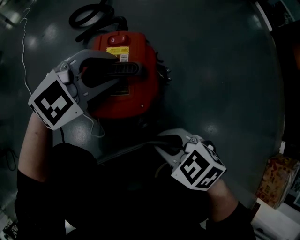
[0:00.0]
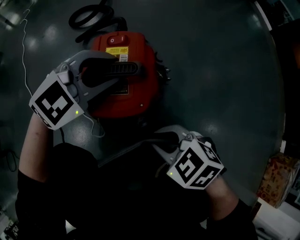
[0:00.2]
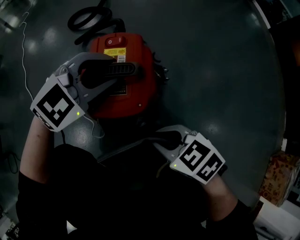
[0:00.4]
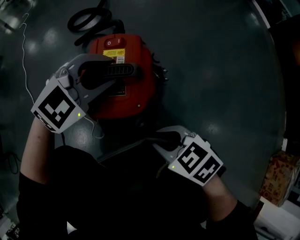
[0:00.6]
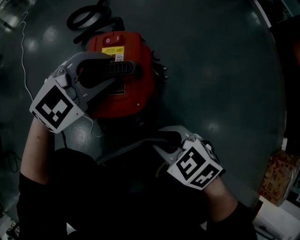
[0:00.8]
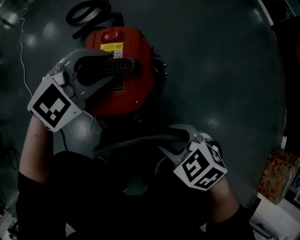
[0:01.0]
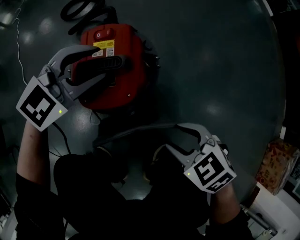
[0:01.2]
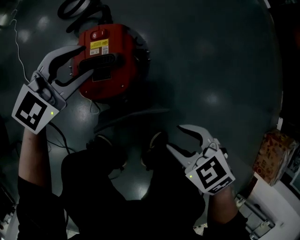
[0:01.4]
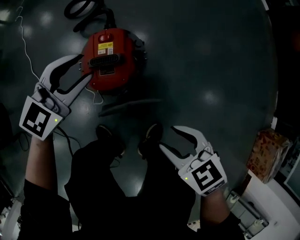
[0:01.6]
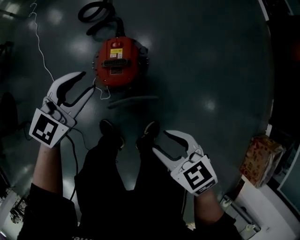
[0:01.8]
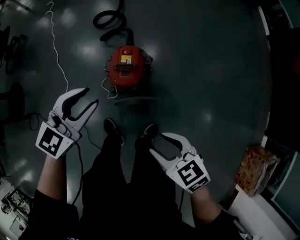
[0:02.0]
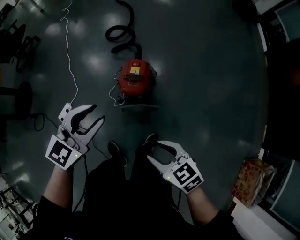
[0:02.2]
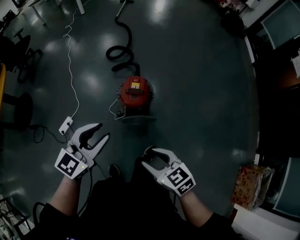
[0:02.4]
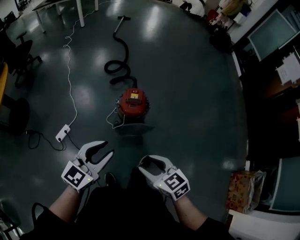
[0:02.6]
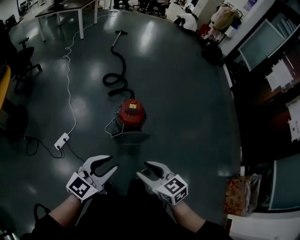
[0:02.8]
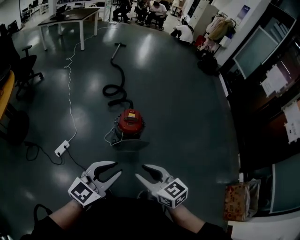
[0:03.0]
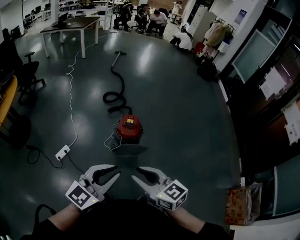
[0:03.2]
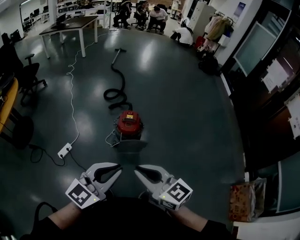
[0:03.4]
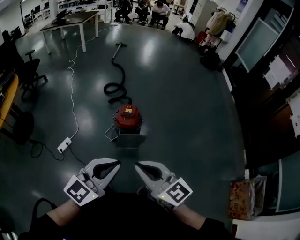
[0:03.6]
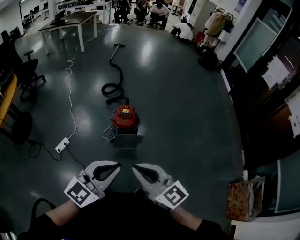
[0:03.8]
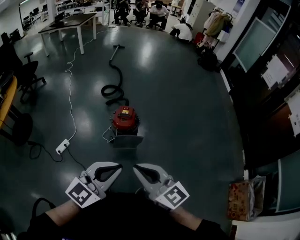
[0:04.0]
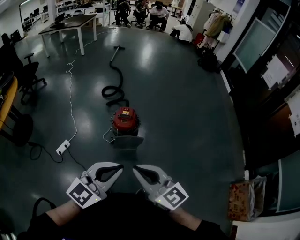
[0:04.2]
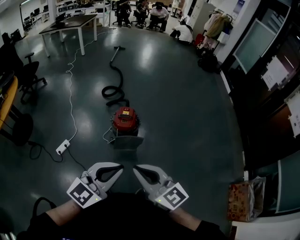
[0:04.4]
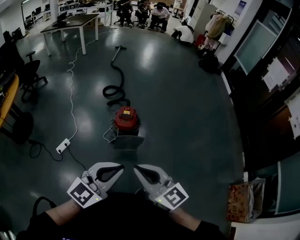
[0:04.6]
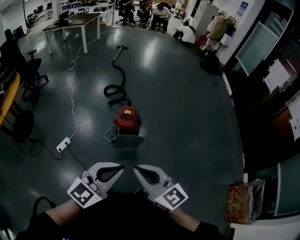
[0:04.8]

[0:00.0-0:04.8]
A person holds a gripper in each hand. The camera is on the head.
0:00.0 to 0:01.6: The grippers both shift upward by some 20 cm. The left gripper changes its angle by roughly 20 degrees, while the right gripper opens.
0:01.6 to 0:03.2: The left gripper travels backward and upward by some 60 cm, swivels some 30 degrees, and closes up. The right gripper goes about 50 cm upward and backward, and tips its fingers upward by about 40 degrees.
0:03.2 to 0:04.8: The two grippers go roughly 10 cm to the right. The right gripper closes up.

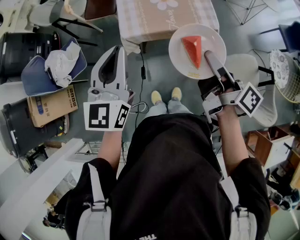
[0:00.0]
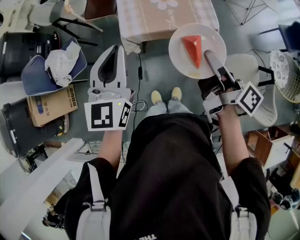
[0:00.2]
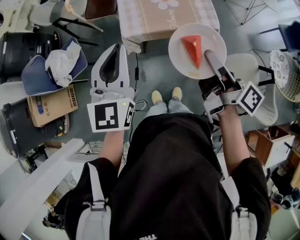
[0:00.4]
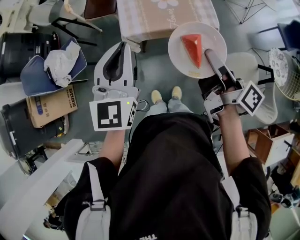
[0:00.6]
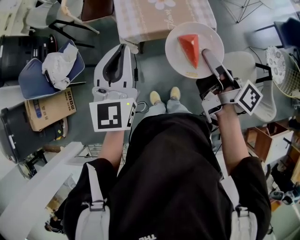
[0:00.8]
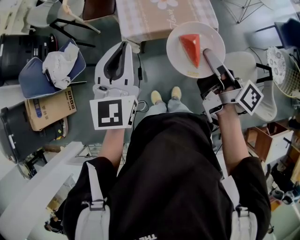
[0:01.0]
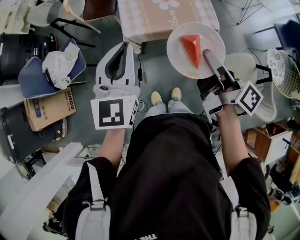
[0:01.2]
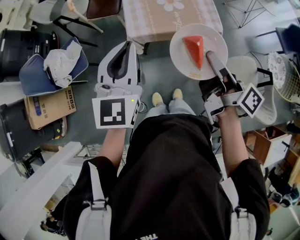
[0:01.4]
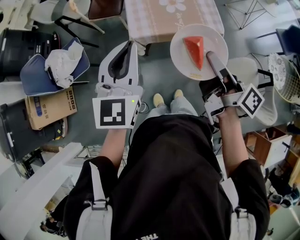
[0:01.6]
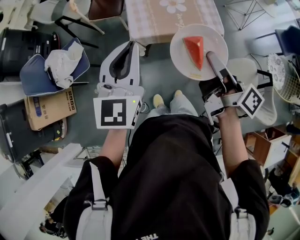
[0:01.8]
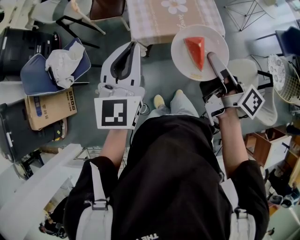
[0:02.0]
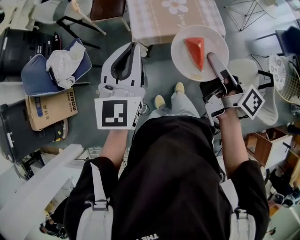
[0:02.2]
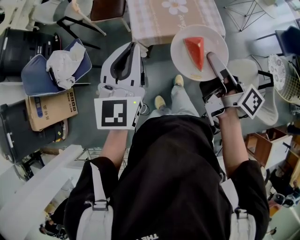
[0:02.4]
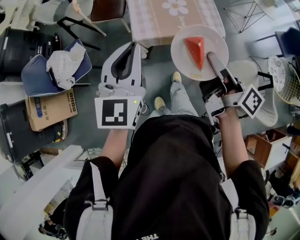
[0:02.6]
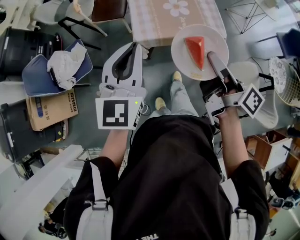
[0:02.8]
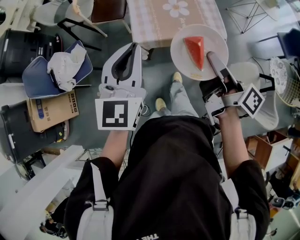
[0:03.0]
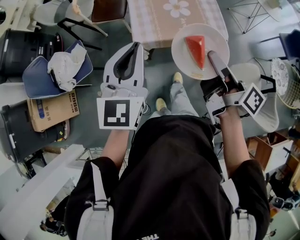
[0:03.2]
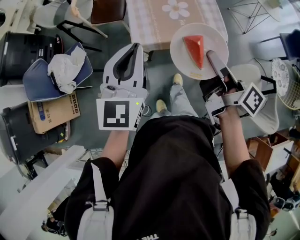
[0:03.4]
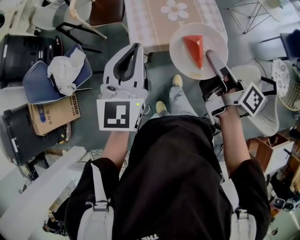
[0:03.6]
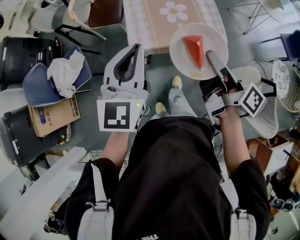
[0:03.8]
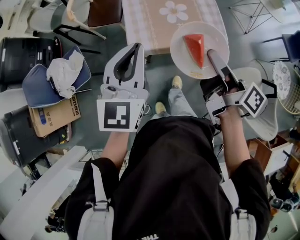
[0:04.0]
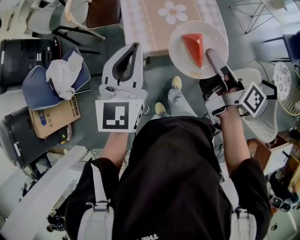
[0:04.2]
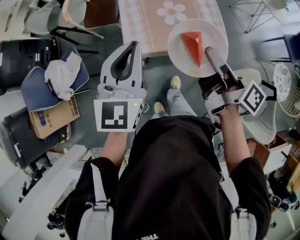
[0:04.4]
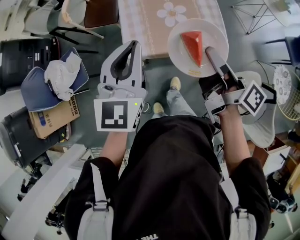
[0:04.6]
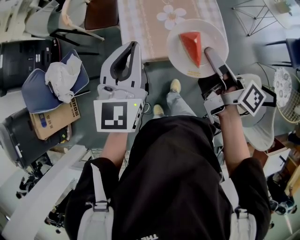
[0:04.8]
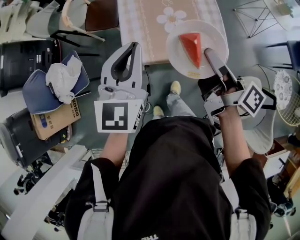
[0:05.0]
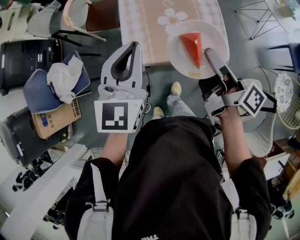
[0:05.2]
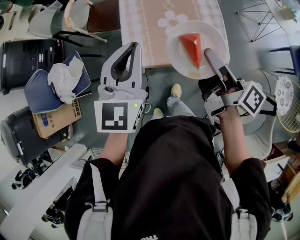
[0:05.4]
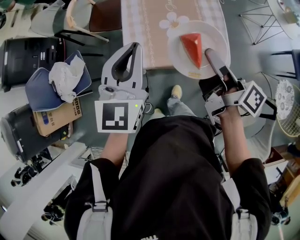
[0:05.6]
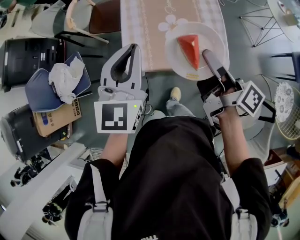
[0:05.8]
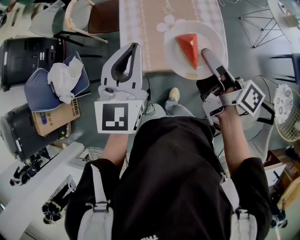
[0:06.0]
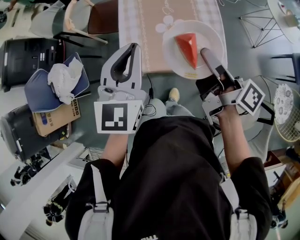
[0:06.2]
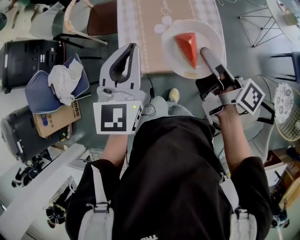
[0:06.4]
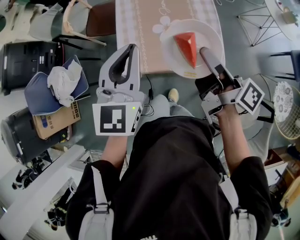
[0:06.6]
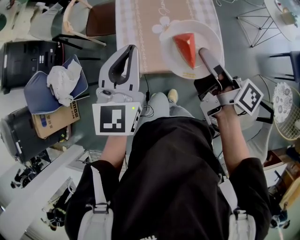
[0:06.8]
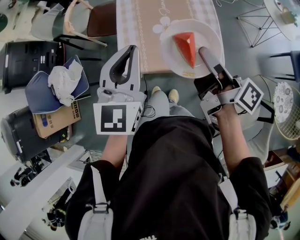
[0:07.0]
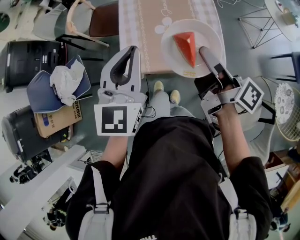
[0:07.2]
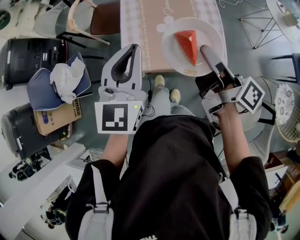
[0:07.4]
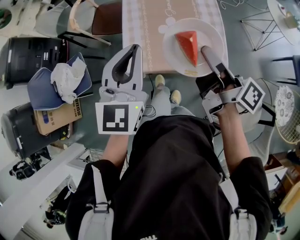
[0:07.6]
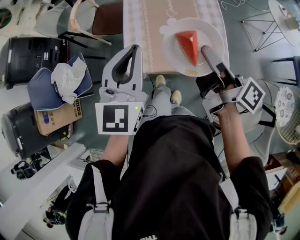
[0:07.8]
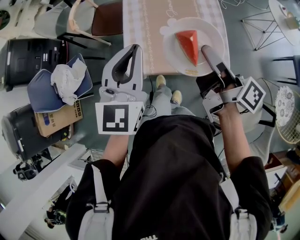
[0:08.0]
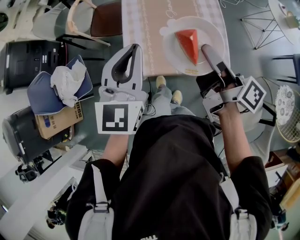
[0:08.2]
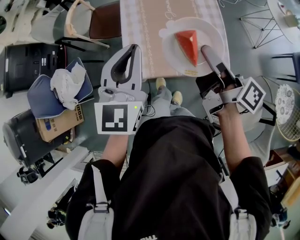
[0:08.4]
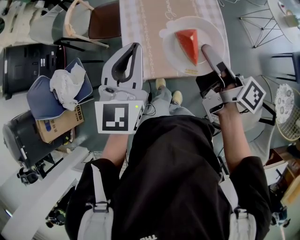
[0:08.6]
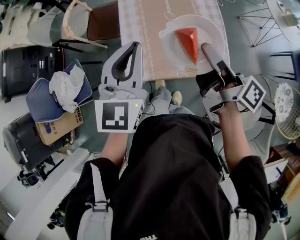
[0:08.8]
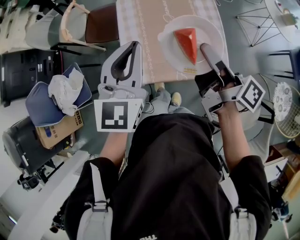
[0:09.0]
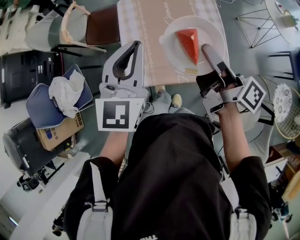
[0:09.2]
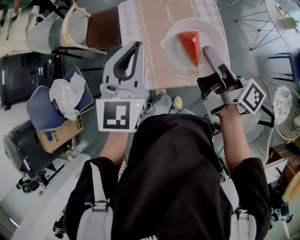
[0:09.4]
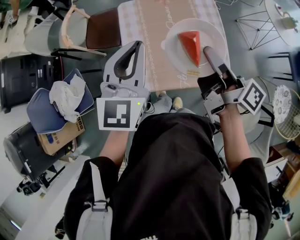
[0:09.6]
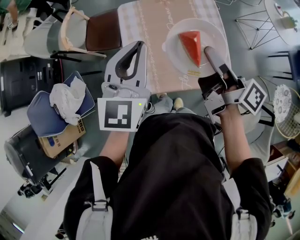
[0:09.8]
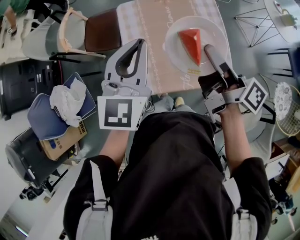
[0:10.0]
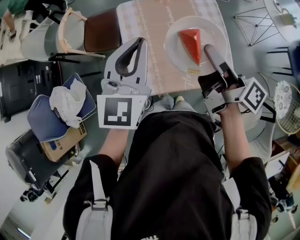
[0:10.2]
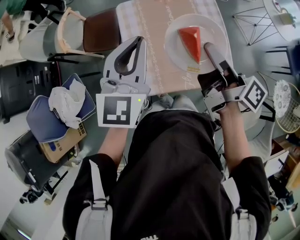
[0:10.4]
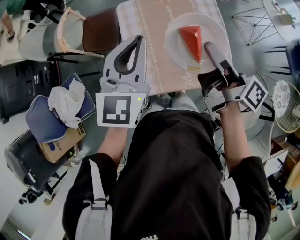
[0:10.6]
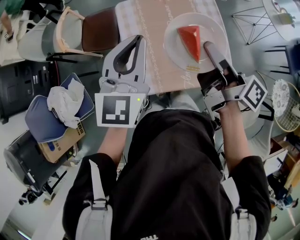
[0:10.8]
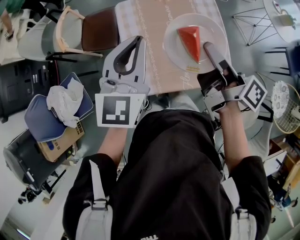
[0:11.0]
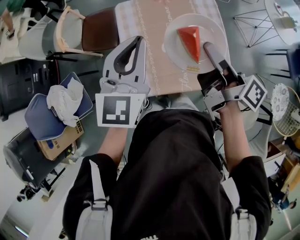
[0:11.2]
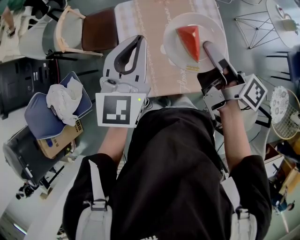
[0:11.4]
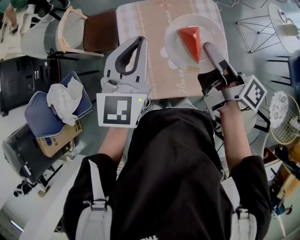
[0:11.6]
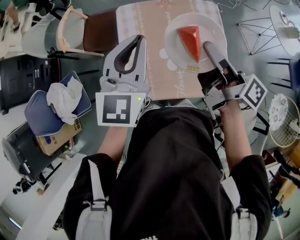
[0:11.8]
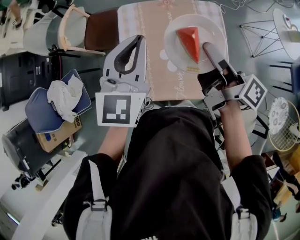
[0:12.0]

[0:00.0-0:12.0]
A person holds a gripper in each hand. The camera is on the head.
0:00.0 to 0:01.6: The right gripper travels to the left by about 5 cm.
0:01.6 to 0:03.0: The grippers make only small movements.
0:03.0 to 0:04.4: Both grippers travel together forward and to the right, about 15 cm.
0:04.4 to 0:06.0: Both grippers move forward and to the right, approximately 10 cm.
0:06.0 to 0:07.6: There are only small adjustments of the grippers.
0:07.6 to 0:09.0: Both grippers move forward, some 10 cm.
0:09.0 to 0:10.4: Both grippers travel together forward, approximately 5 cm.
0:10.4 to 0:12.0: The right gripper heads forward, covering about 5 cm. Meanwhile the left gripper shifts by approximately 5 cm.

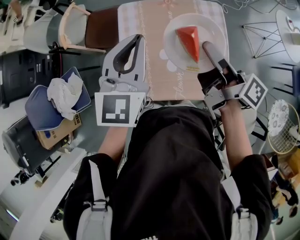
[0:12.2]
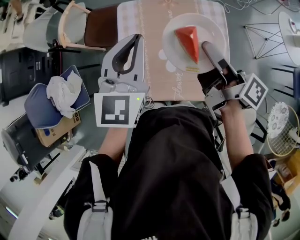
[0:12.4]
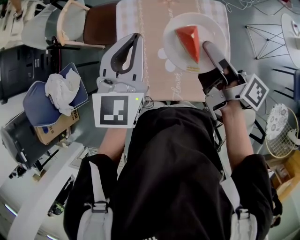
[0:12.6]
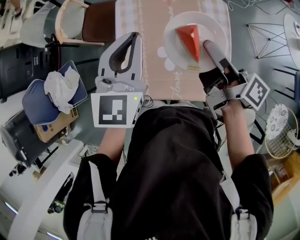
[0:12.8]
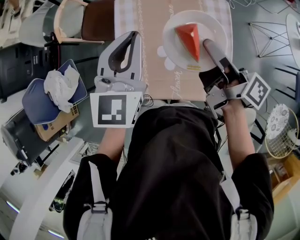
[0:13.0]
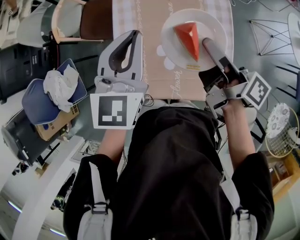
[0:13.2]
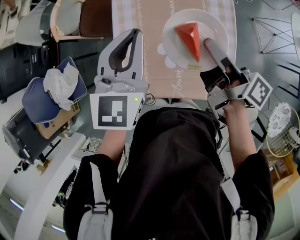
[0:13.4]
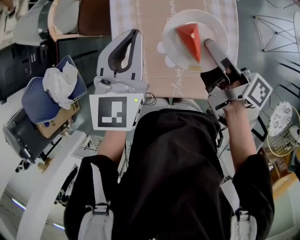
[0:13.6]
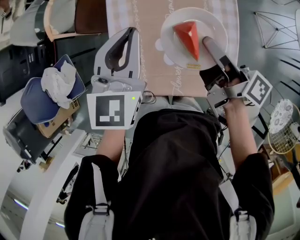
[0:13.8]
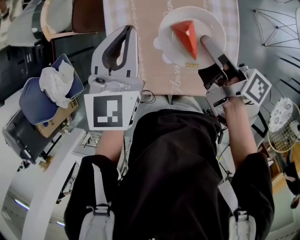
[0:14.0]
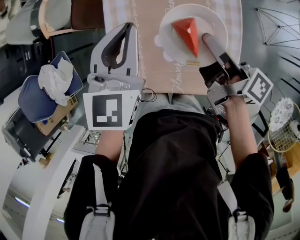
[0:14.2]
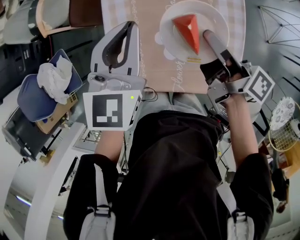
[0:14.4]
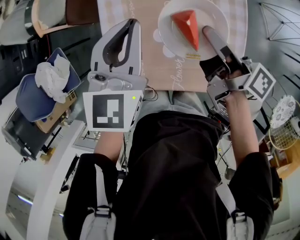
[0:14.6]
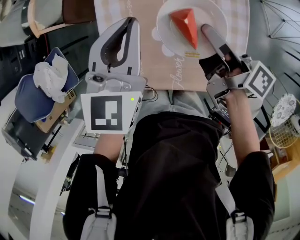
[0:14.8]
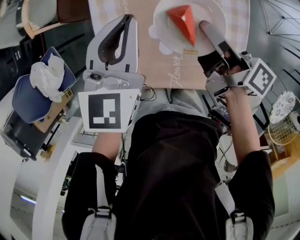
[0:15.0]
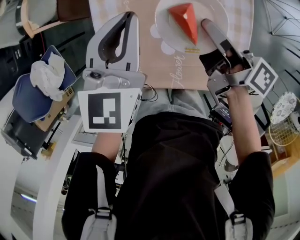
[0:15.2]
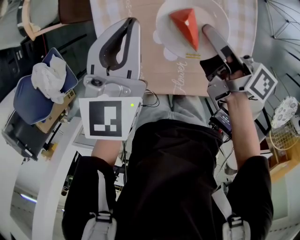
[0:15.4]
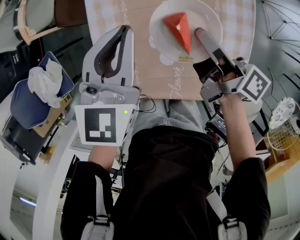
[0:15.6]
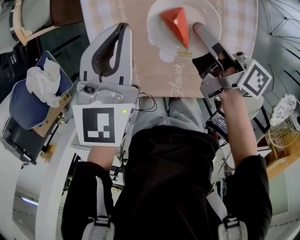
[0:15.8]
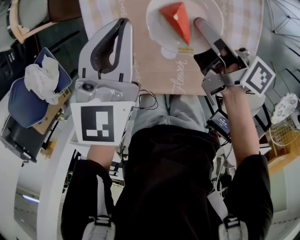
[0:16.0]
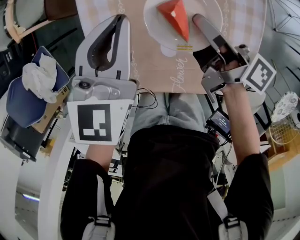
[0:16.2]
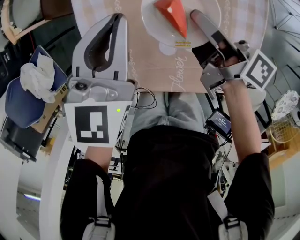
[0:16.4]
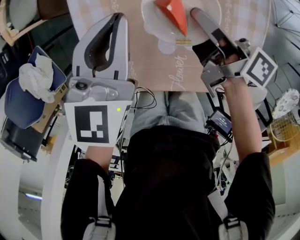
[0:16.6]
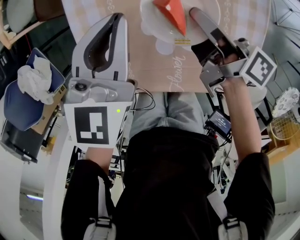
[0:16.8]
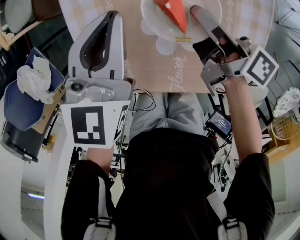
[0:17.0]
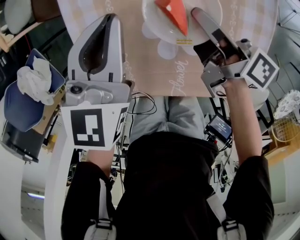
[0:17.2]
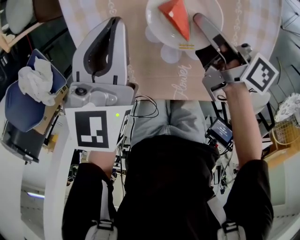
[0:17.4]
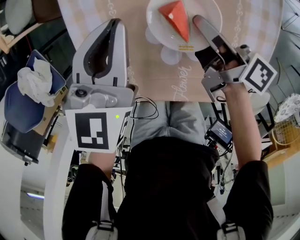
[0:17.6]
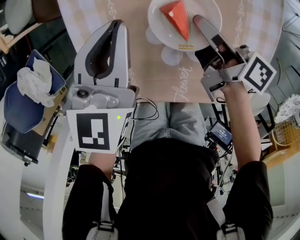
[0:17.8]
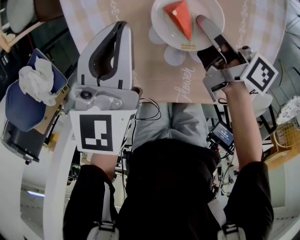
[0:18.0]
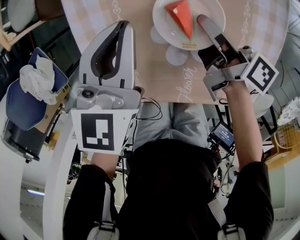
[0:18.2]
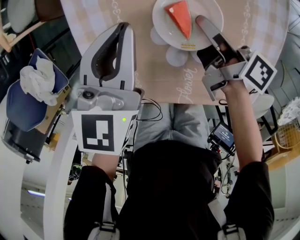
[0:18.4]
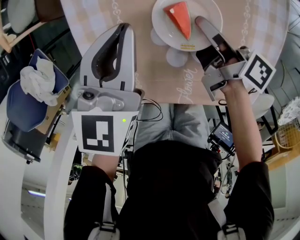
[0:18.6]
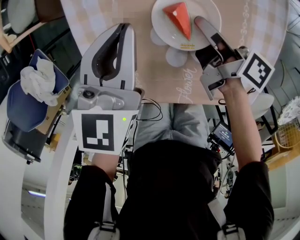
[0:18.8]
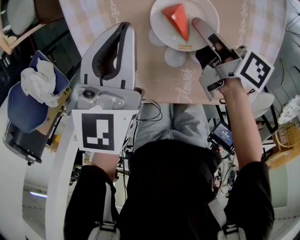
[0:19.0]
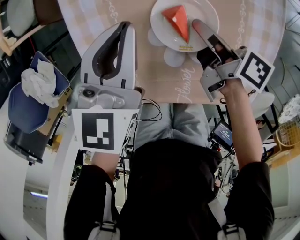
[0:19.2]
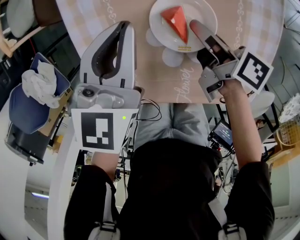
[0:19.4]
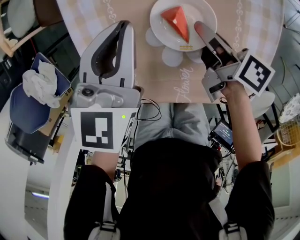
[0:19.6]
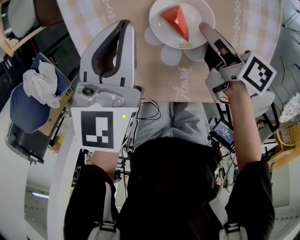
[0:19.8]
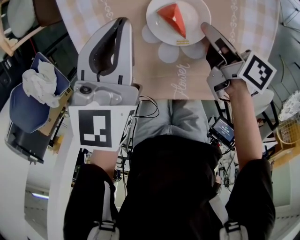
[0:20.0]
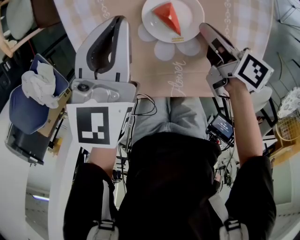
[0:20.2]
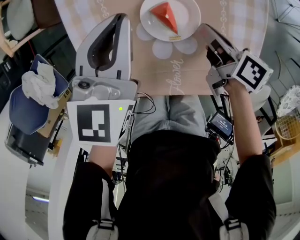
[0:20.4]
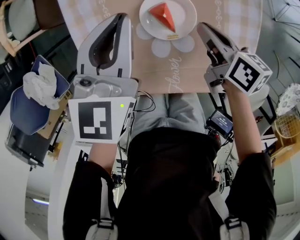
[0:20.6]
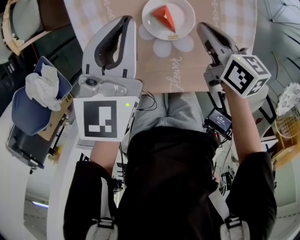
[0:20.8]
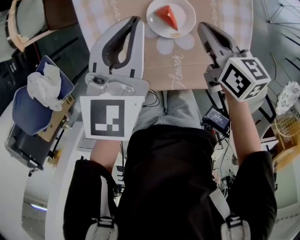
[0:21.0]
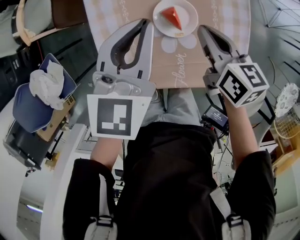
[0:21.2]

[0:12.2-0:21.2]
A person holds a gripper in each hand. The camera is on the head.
0:12.2 to 0:13.8: The grippers both shift downward by some 10 cm.
0:13.8 to 0:15.2: Both grippers move downward, roughly 10 cm.
0:15.2 to 0:16.6: The two grippers go roughly 10 cm downward.
0:16.6 to 0:18.2: The grippers both shift downward by approximately 5 cm.
0:18.2 to 0:19.8: The grippers make only small movements.
0:19.8 to 0:21.2: Both grippers move upward, approximately 15 cm. The right gripper rotates roughly 40 degrees.
